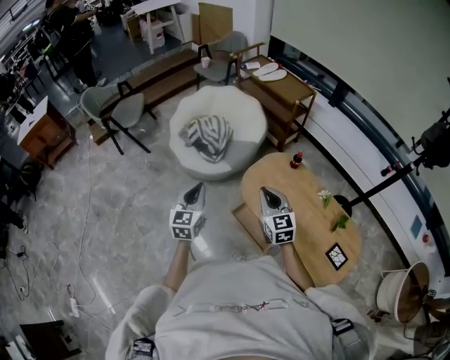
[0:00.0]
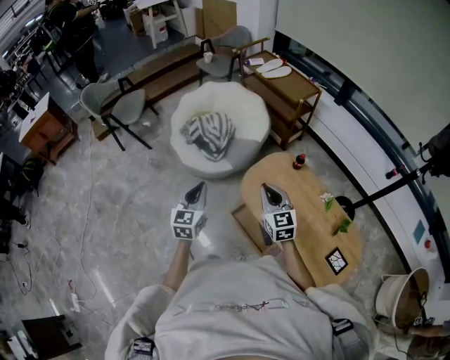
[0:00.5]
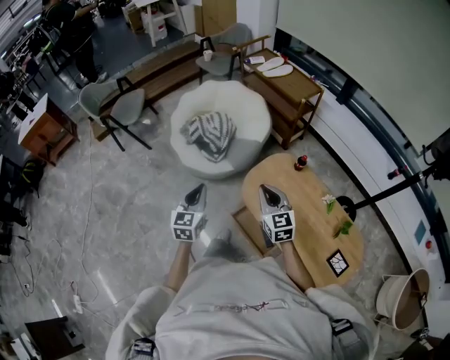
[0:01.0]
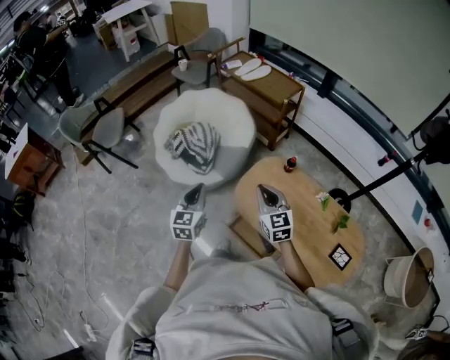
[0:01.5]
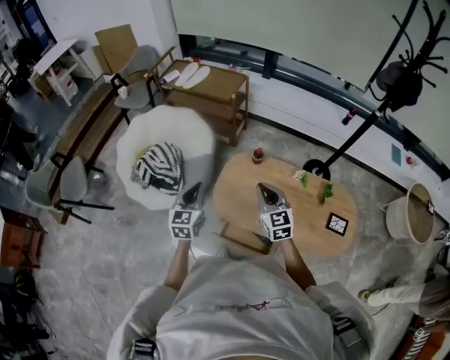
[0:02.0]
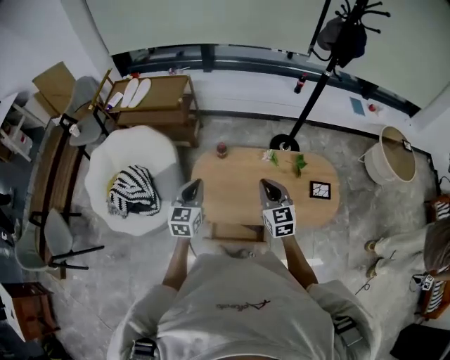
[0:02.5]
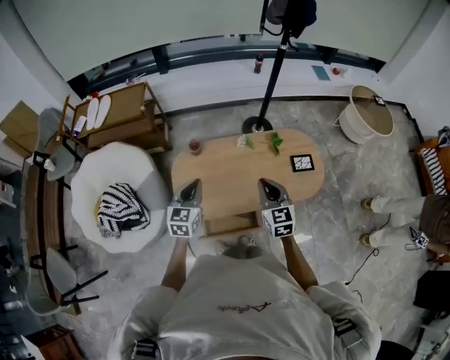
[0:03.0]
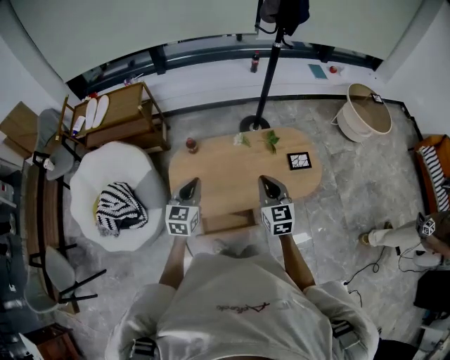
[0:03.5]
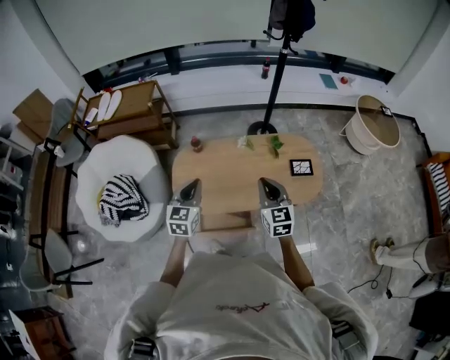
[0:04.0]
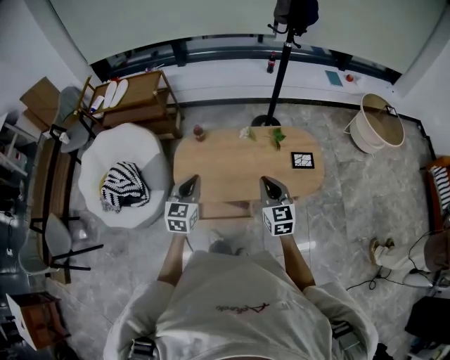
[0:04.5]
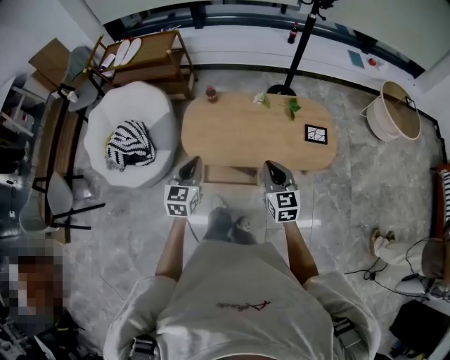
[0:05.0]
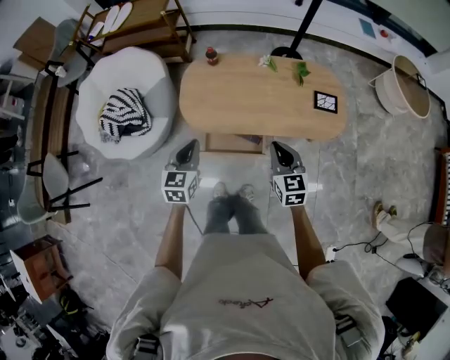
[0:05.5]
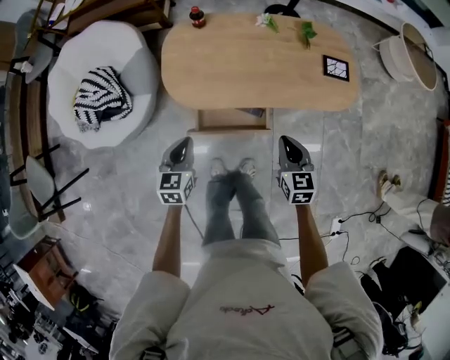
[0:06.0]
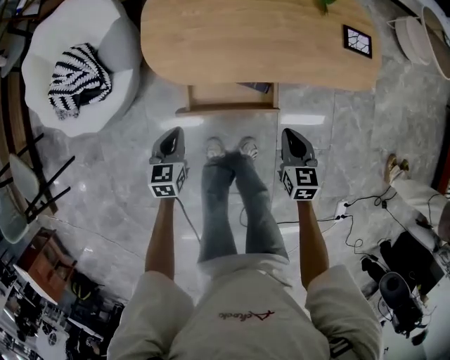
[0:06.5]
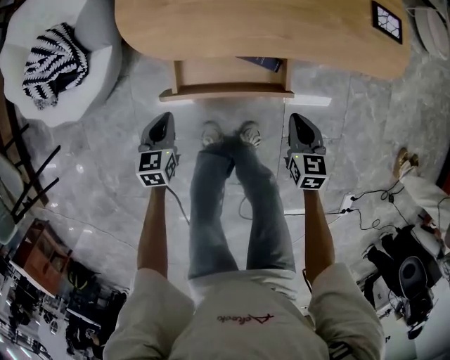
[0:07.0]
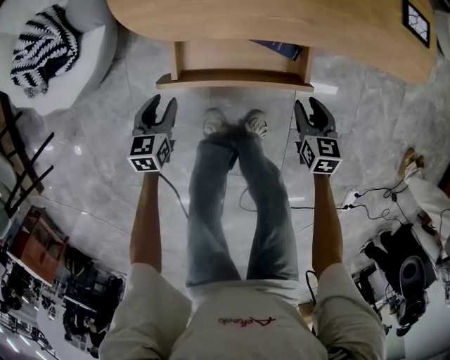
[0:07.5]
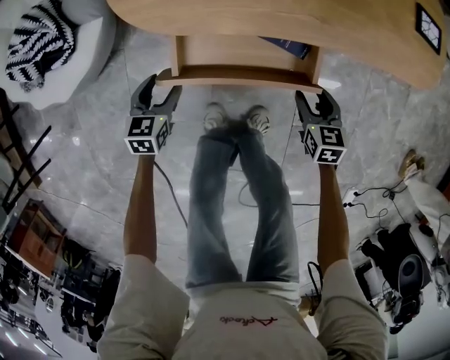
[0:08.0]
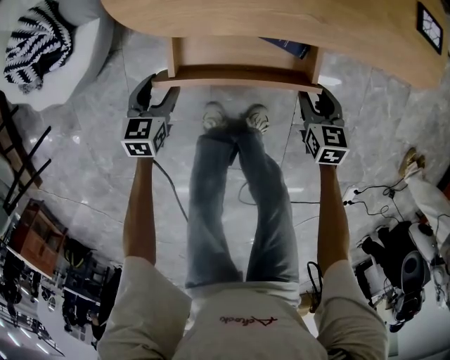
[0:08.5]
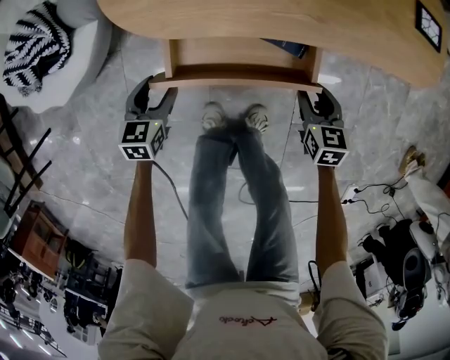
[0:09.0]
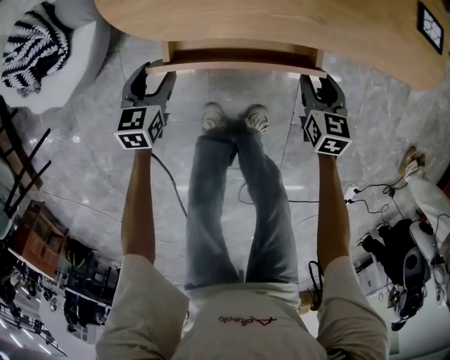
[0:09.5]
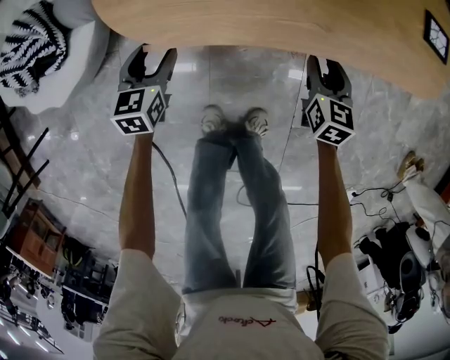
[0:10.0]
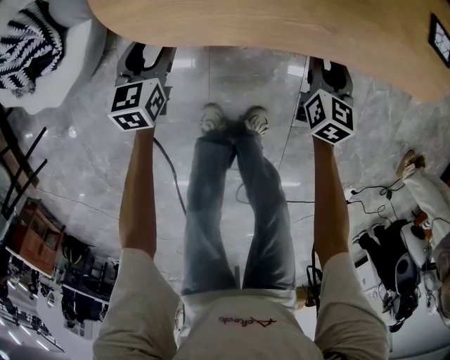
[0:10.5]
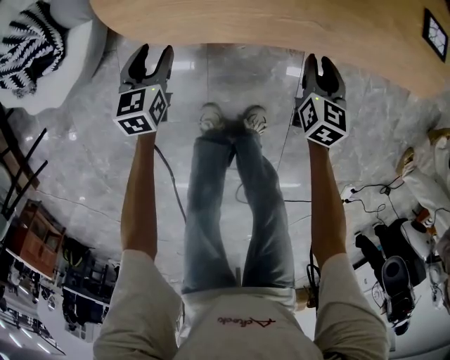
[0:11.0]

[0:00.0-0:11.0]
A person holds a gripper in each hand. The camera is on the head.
0:00.0 to 0:02.0: The left gripper shifts by approximately 25 cm, and changes its angle by approximately 30 degrees. Meanwhile the right gripper ends up roughly 20 cm from where it was, and turns by about 30 degrees.
0:02.0 to 0:03.5: The right gripper shifts by some 20 cm, and turns by roughly 40 degrees. The left gripper moves about 20 cm, and swivels roughly 40 degrees.
0:03.5 to 0:05.5: Both grippers travel together backward and downward, some 20 cm.
0:05.5 to 0:07.5: The two grippers go some 60 cm downward. The left gripper turns by roughly 20 degrees, and opens; the right gripper turns by roughly 30 degrees, and opens.
0:07.5 to 0:09.0: The grippers make only small movements.
0:09.0 to 0:11.0: The grippers both shift forward by roughly 10 cm.

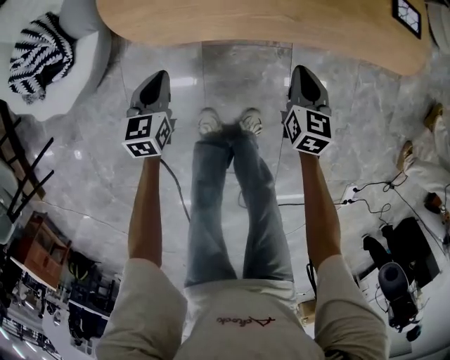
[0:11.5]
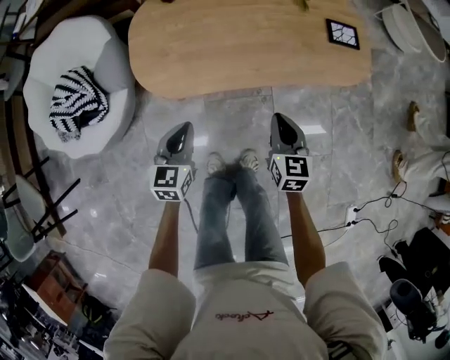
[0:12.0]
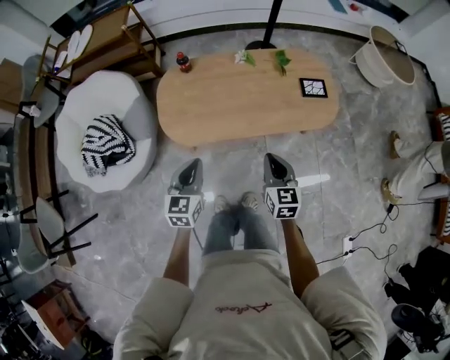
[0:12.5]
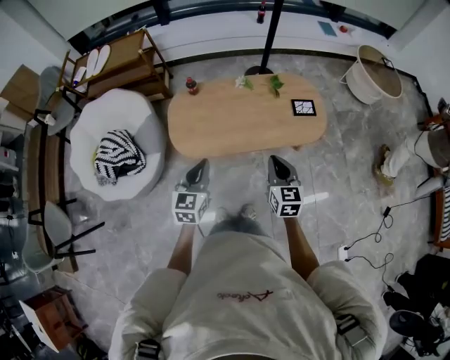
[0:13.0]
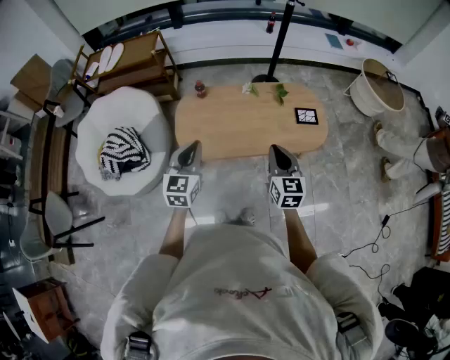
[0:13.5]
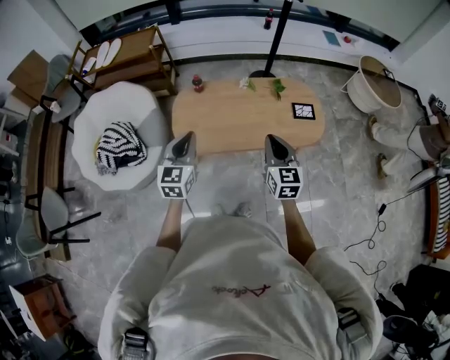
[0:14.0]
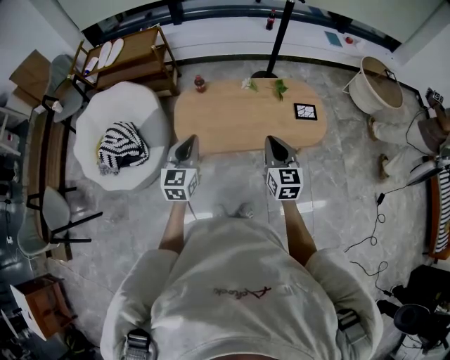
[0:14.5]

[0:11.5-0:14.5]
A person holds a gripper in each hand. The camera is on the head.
0:11.5 to 0:13.0: Both grippers travel together upward, about 60 cm. The left gripper turns by roughly 20 degrees.
0:13.0 to 0:14.5: Both grippers travel together upward, roughly 10 cm.

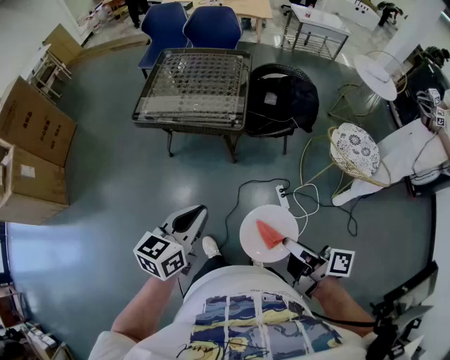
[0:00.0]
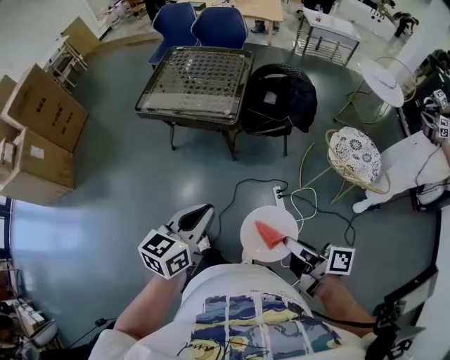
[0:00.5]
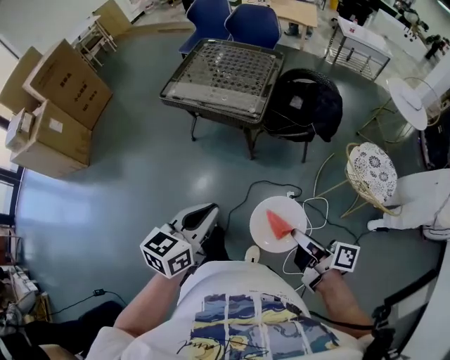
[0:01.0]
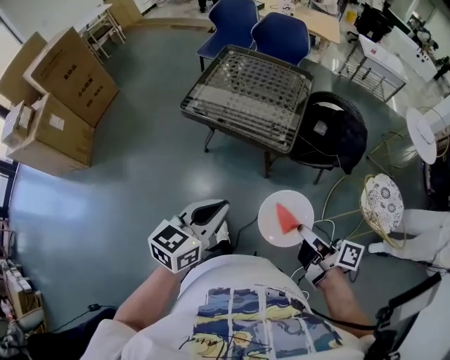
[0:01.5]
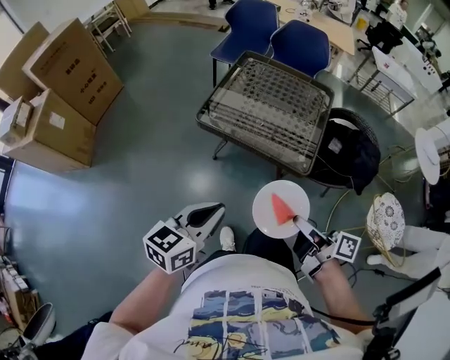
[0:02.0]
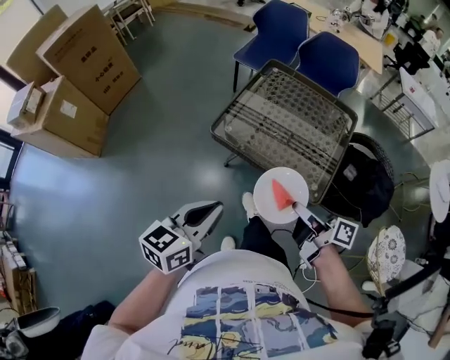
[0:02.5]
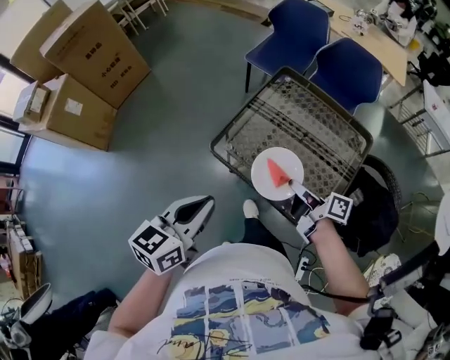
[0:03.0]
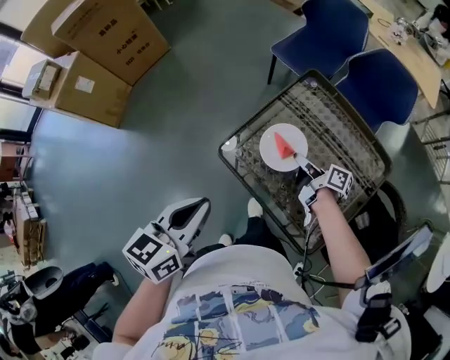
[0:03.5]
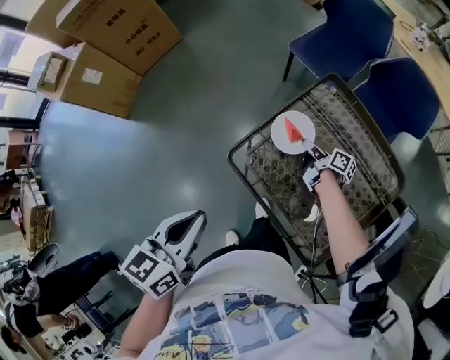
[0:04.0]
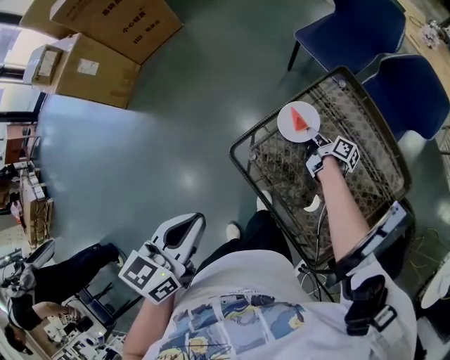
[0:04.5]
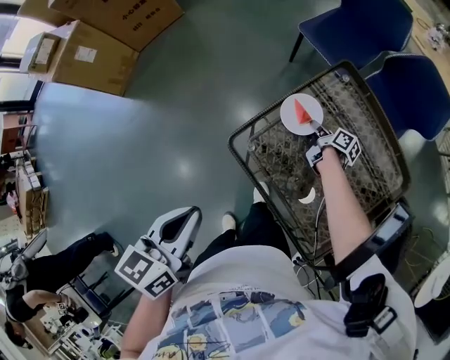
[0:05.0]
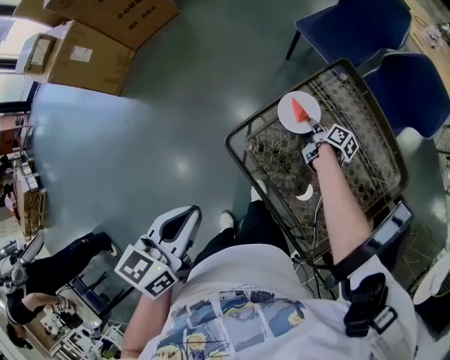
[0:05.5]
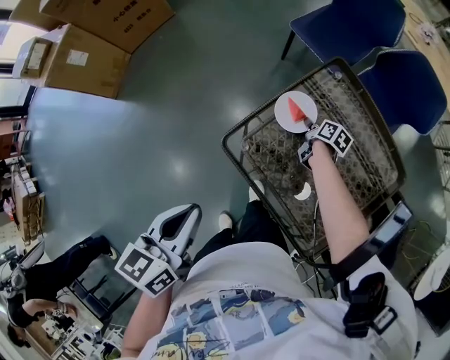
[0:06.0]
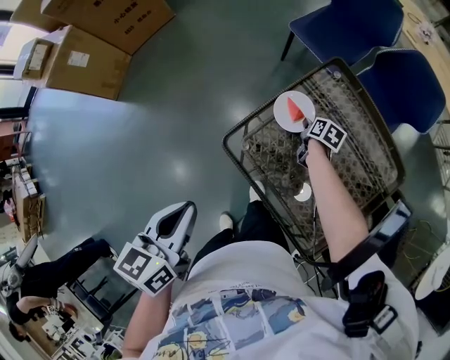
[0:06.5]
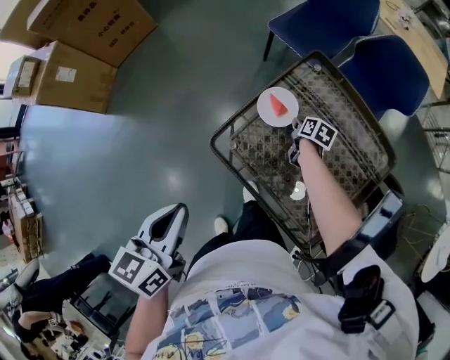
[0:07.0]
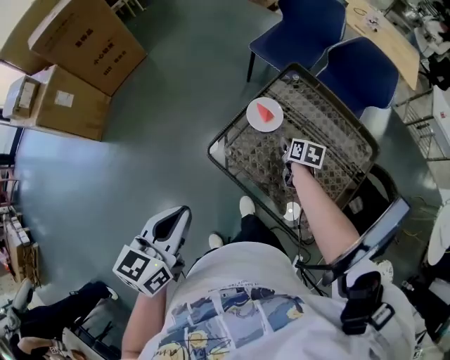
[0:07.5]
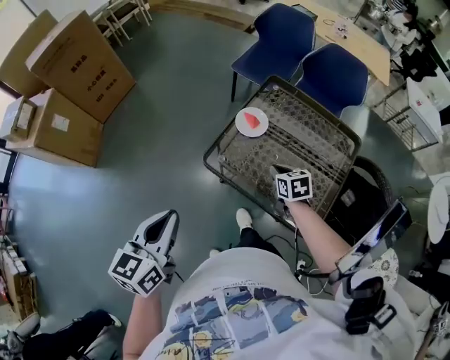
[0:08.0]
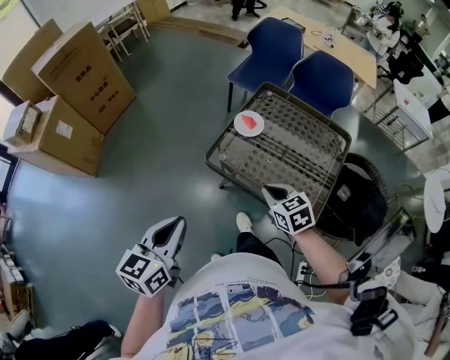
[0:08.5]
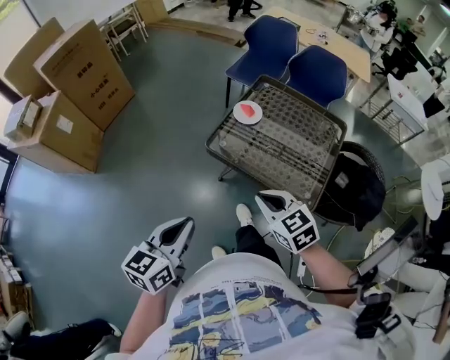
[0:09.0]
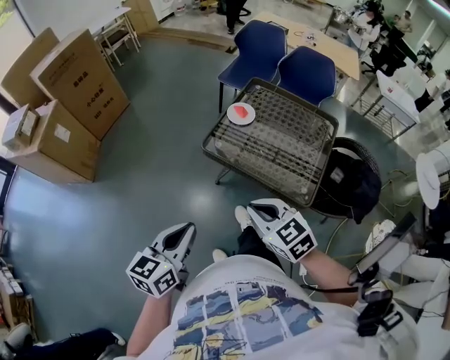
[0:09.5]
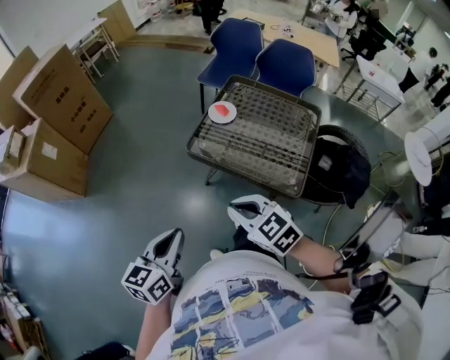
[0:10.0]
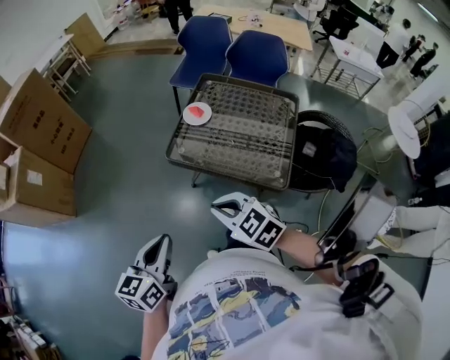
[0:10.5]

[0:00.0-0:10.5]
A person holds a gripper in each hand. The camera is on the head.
0:00.0 to 0:02.0: Both grippers move forward and to the left, about 25 cm.
0:02.0 to 0:04.0: The left gripper shifts by some 35 cm, and rotates some 40 degrees. Meanwhile the right gripper moves some 70 cm, and changes its angle by some 20 degrees.
0:04.0 to 0:06.5: The right gripper goes about 5 cm downward, and points its fingers roughly 40 degrees further downward.
0:06.5 to 0:08.5: The right gripper is displaced backward and upward by about 50 cm, rolls counterclockwise, seen from behind, by some 40 degrees, and closes up, while the left gripper heads backward, covering about 20 cm, and rotates approximately 20 degrees.
0:08.5 to 0:10.5: The right gripper travels backward, to the left and upward by some 20 cm. The left gripper is displaced backward by approximately 10 cm.

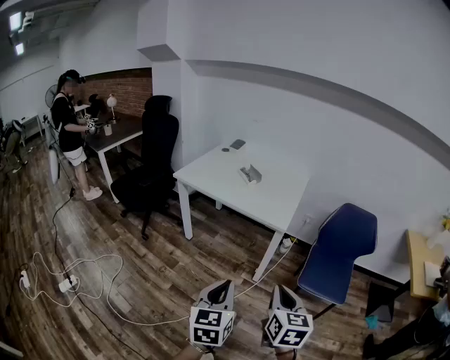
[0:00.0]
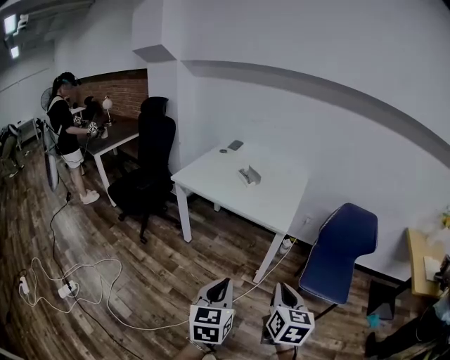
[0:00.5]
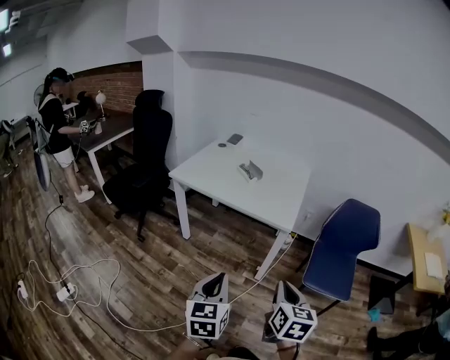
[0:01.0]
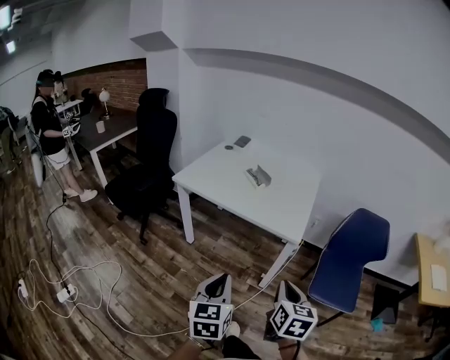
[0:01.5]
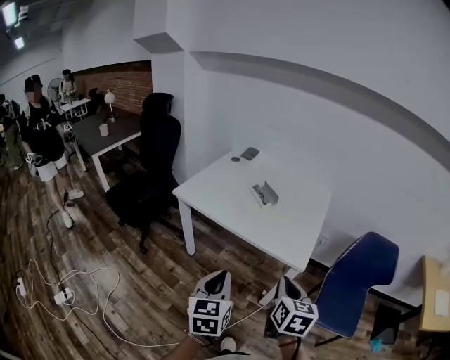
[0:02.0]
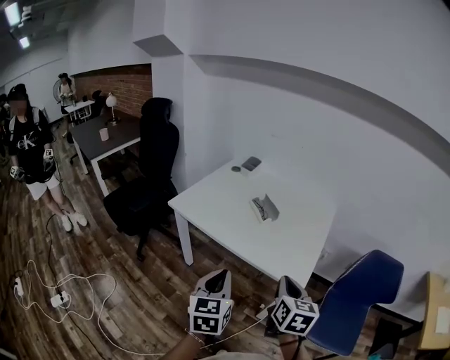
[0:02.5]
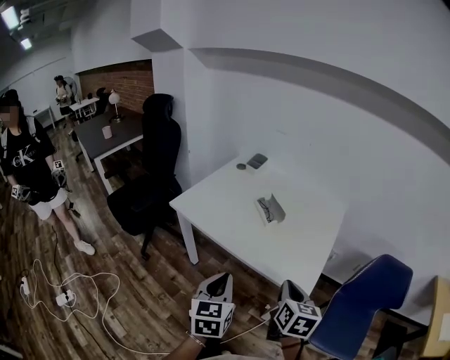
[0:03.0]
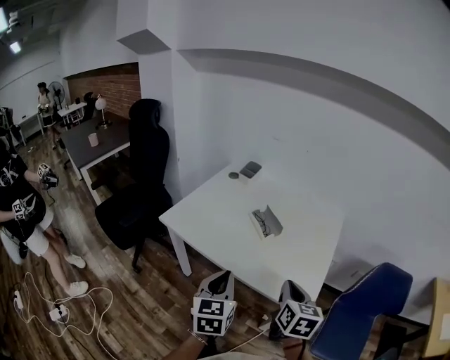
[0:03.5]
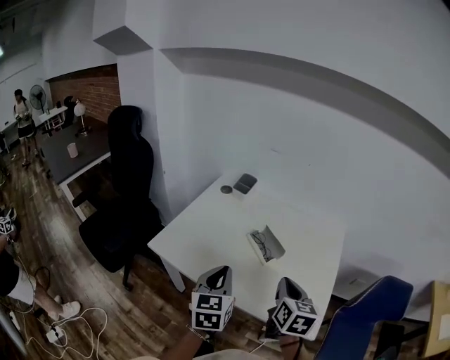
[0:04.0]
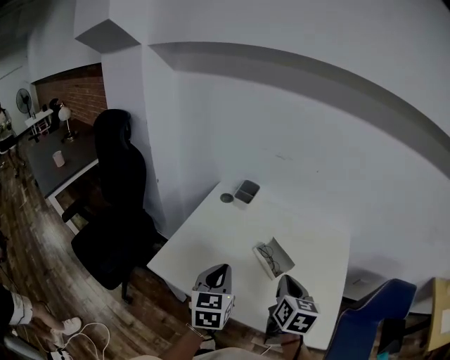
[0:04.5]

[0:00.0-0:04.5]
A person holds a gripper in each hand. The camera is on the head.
0:00.0 to 0:02.0: Both grippers move forward, about 25 cm.
0:02.0 to 0:04.5: The two grippers go approximately 40 cm forward.
